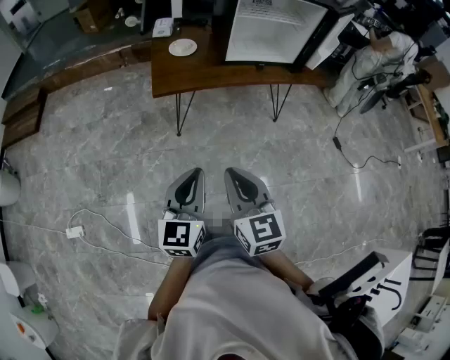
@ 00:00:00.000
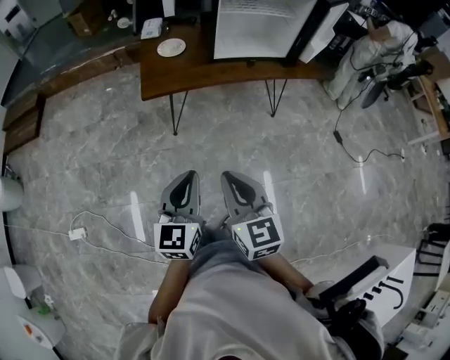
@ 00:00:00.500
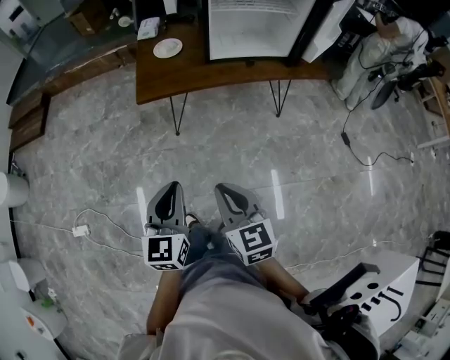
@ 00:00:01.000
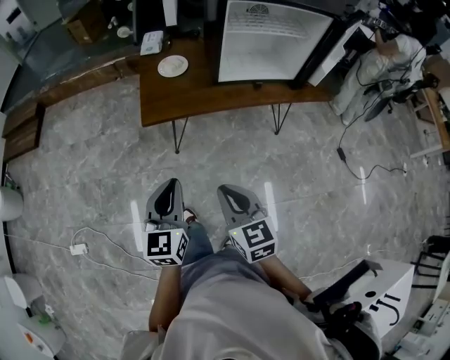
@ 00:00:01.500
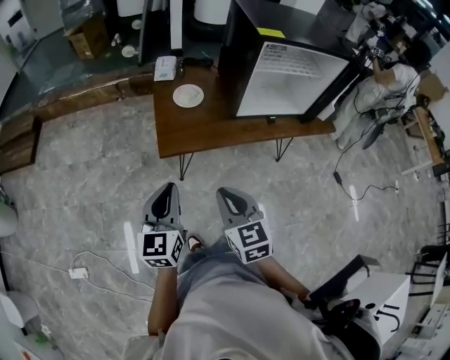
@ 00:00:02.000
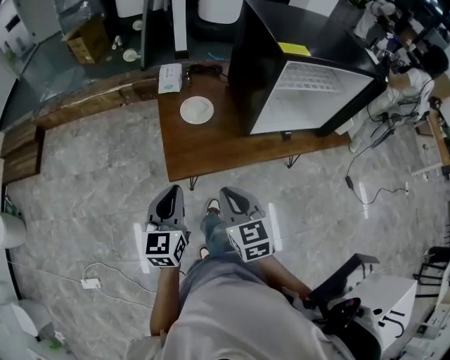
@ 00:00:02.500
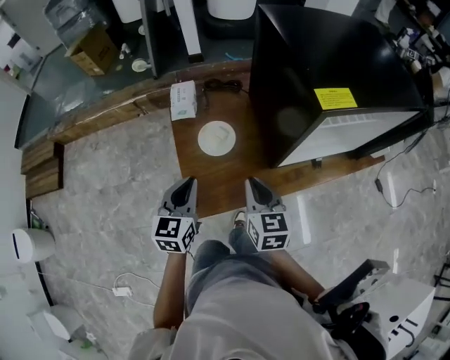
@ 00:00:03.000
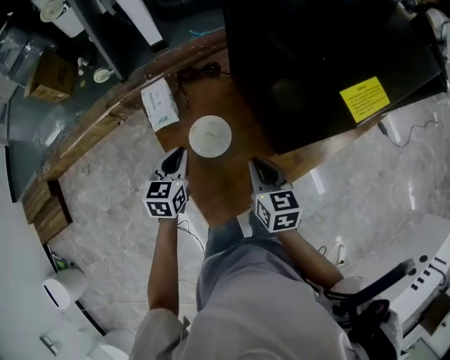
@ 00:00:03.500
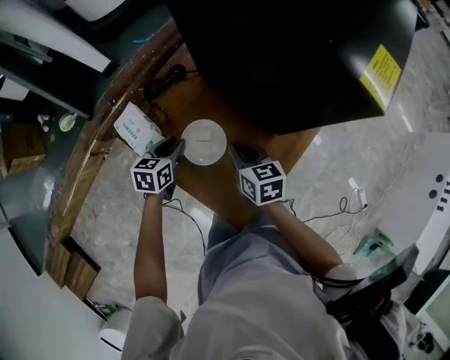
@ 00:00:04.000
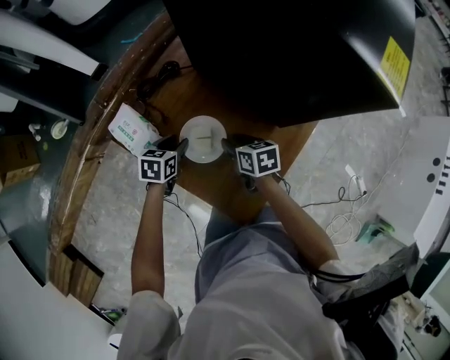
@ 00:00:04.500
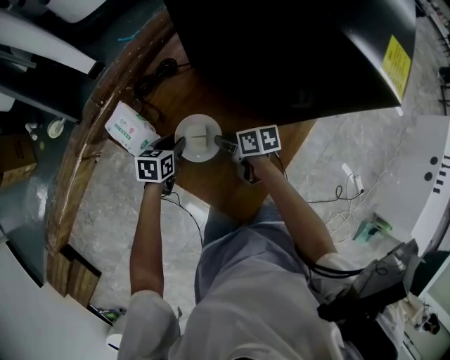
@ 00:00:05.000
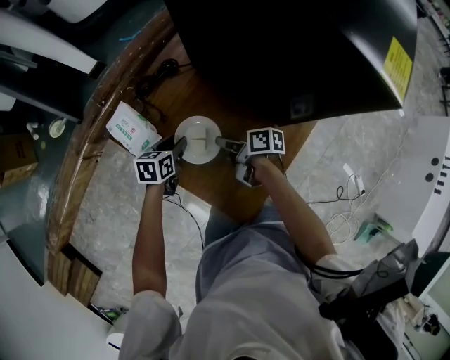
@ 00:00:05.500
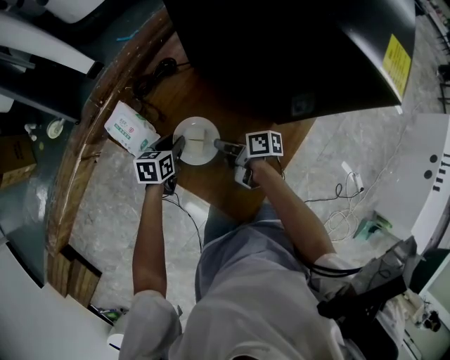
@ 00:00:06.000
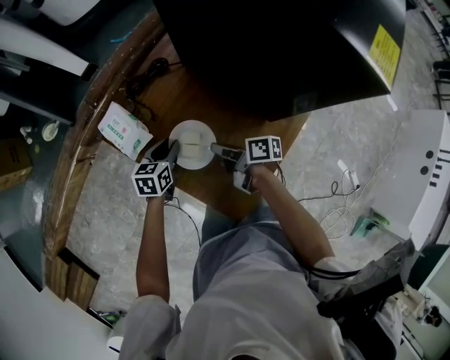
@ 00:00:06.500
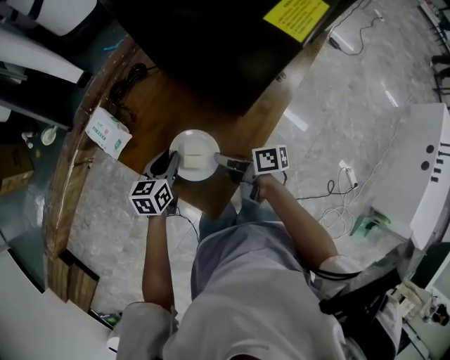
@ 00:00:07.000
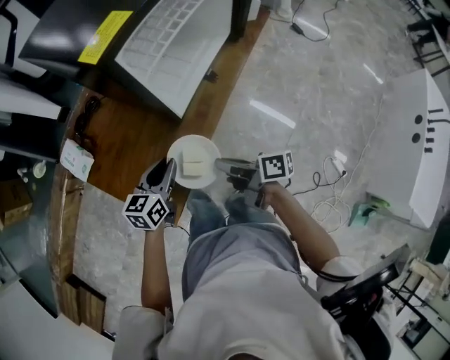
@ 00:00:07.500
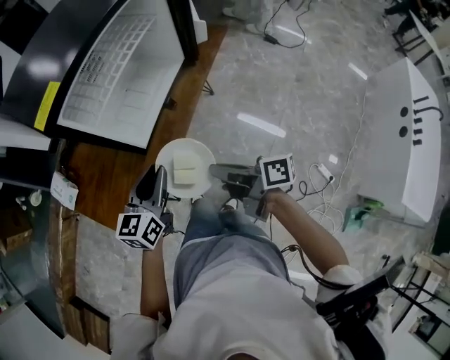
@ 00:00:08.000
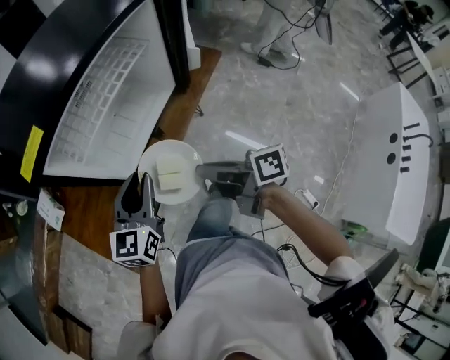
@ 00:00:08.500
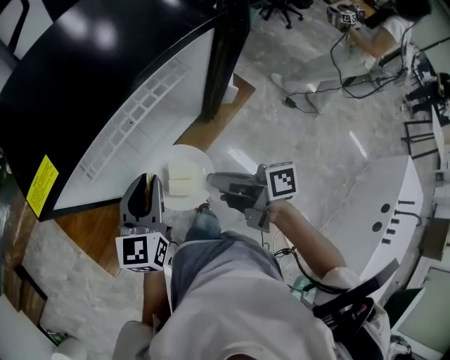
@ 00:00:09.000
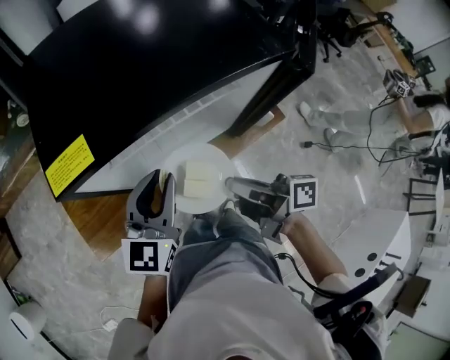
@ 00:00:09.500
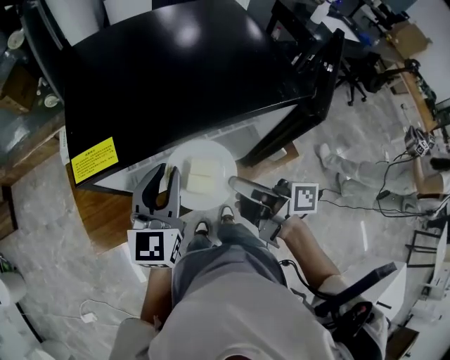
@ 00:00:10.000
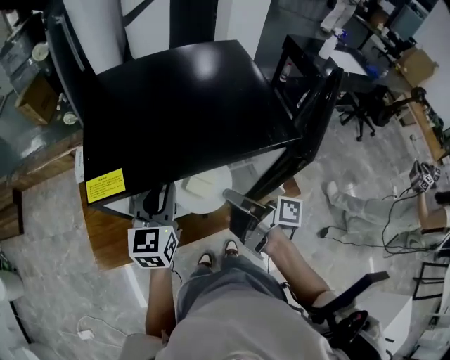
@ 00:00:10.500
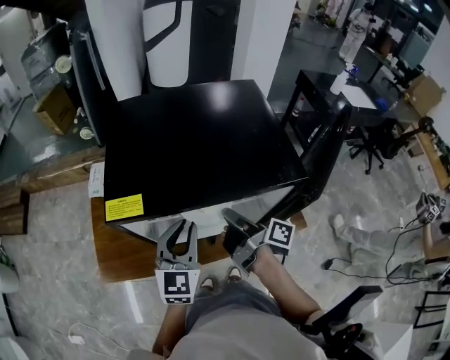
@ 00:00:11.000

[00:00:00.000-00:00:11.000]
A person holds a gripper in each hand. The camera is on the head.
00:00:00.000 to 00:00:02.000: The grippers both shift forward by roughly 35 cm.
00:00:02.000 to 00:00:03.500: The two grippers travel together, forward, approximately 70 cm. The left gripper swivels about 30 degrees. Meanwhile the right gripper swivels roughly 30 degrees.
00:00:03.500 to 00:00:05.500: The right gripper moves downward, to the left and forward, approximately 25 cm, and rolls clockwise, seen from behind, by some 60 degrees, while the left gripper shifts about 20 cm downward and forward, swivels about 40 degrees, and opens up.
00:00:05.500 to 00:00:07.500: The two grippers travel together, to the right and backward, about 50 cm. The left gripper rotates approximately 20 degrees.
00:00:07.500 to 00:00:09.000: The two grippers go roughly 40 cm to the right, forward and upward. The left gripper turns by some 30 degrees.
00:00:09.000 to 00:00:11.000: The right gripper travels forward by some 20 cm. The left gripper goes roughly 10 cm upward and forward, and swivels some 30 degrees.

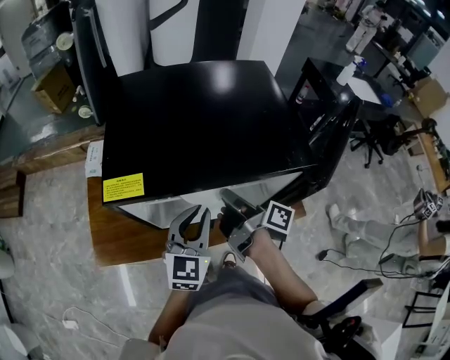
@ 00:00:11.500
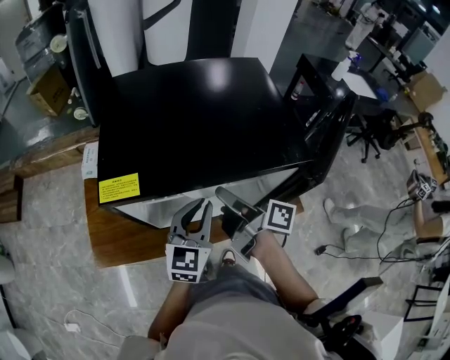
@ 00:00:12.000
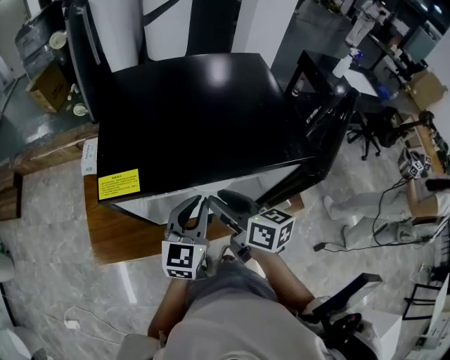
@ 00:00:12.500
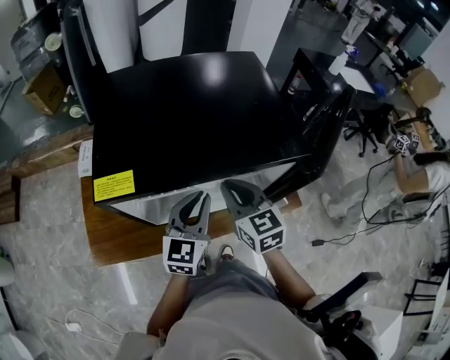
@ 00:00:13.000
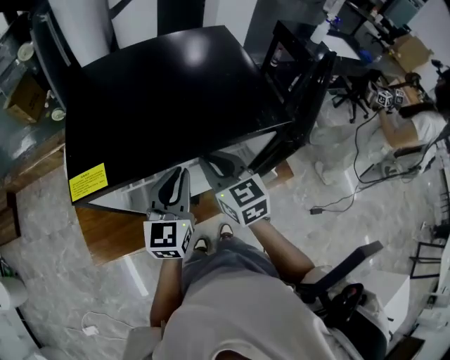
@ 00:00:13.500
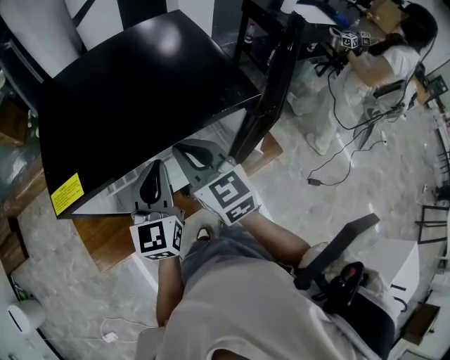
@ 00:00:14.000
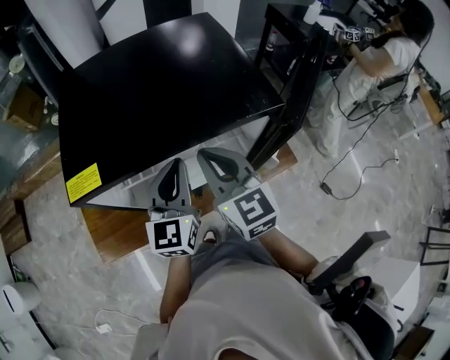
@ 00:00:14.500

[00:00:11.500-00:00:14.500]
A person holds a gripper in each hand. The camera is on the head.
00:00:11.500 to 00:00:13.000: The right gripper rolls counterclockwise, seen from behind, by roughly 80 degrees, and opens and closes again.
00:00:13.000 to 00:00:14.500: The right gripper ends up approximately 5 cm from where it was.

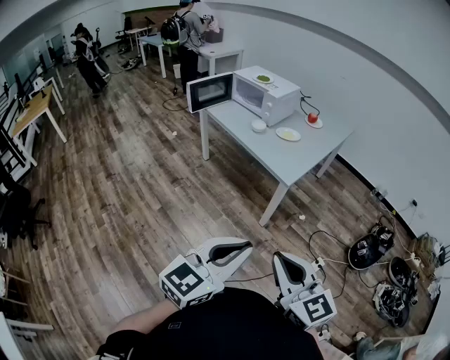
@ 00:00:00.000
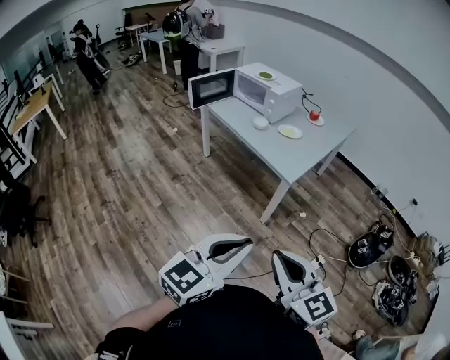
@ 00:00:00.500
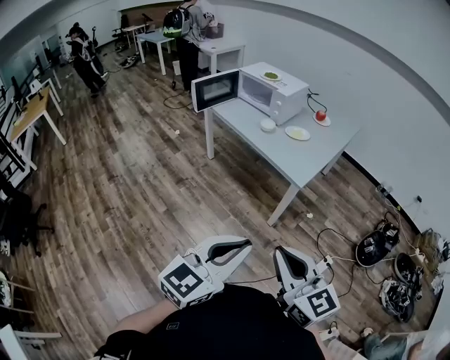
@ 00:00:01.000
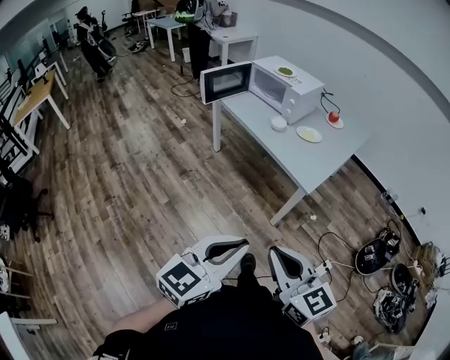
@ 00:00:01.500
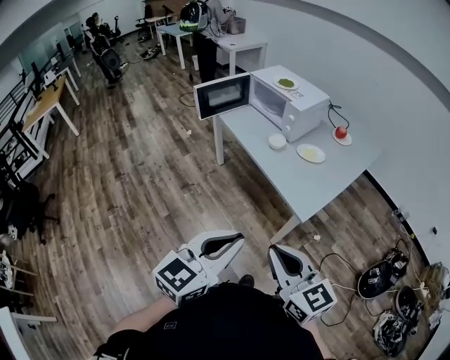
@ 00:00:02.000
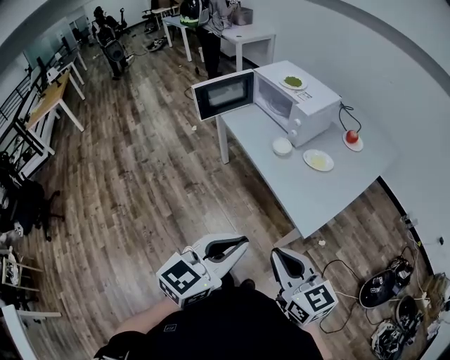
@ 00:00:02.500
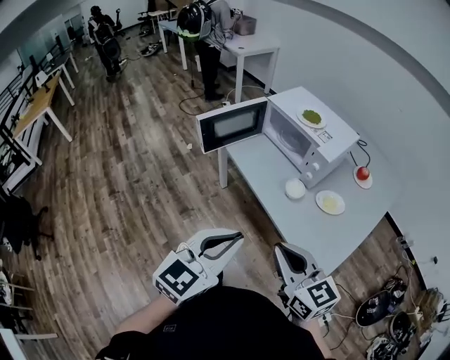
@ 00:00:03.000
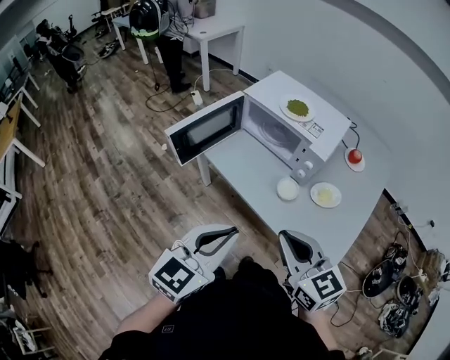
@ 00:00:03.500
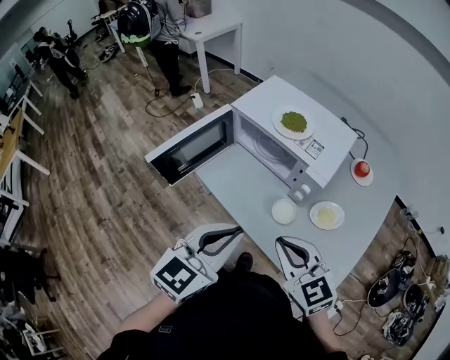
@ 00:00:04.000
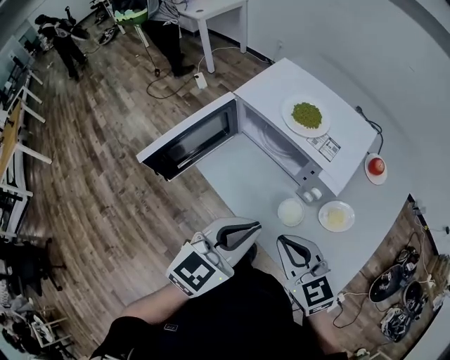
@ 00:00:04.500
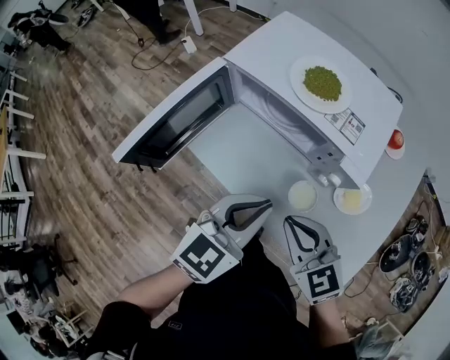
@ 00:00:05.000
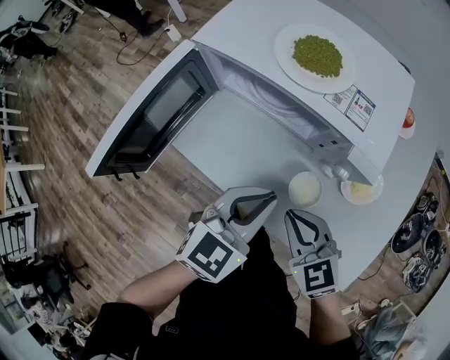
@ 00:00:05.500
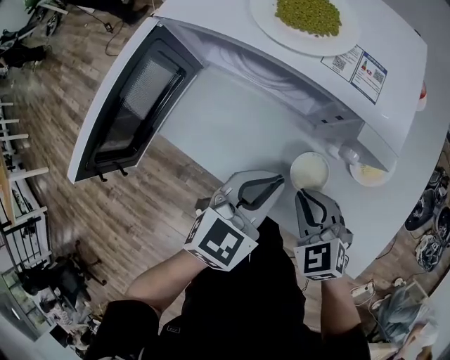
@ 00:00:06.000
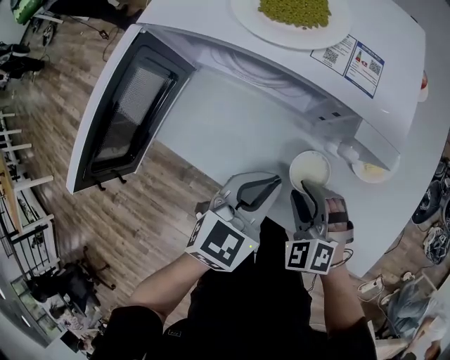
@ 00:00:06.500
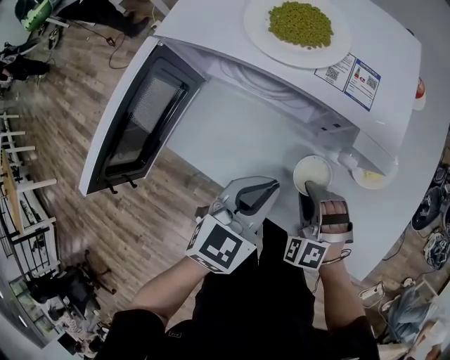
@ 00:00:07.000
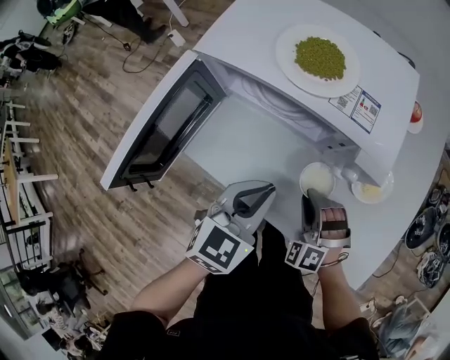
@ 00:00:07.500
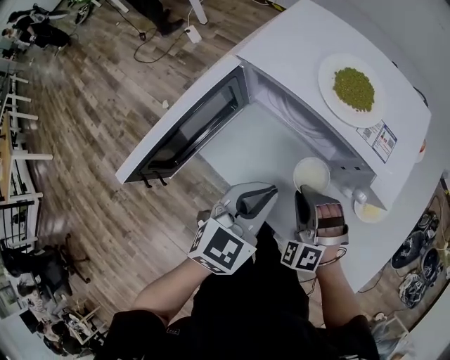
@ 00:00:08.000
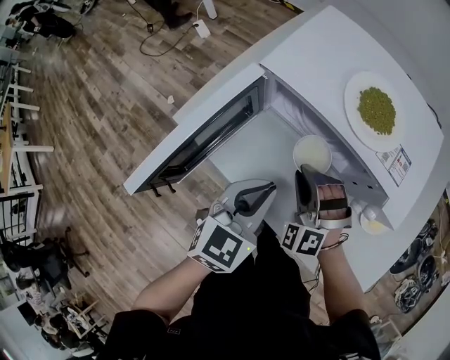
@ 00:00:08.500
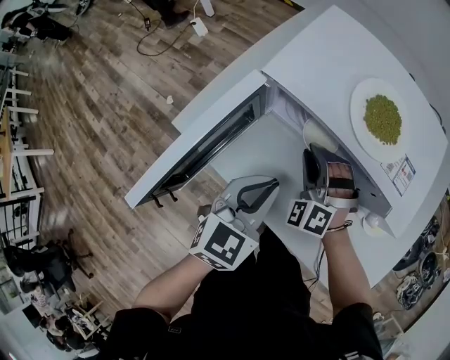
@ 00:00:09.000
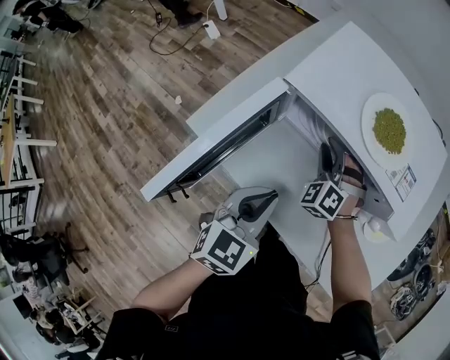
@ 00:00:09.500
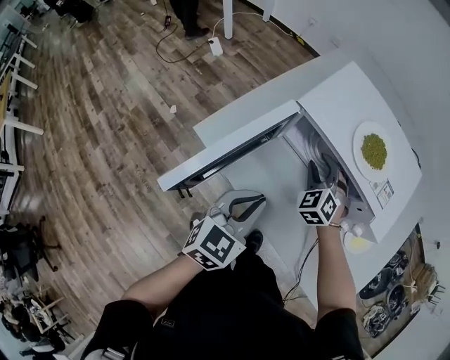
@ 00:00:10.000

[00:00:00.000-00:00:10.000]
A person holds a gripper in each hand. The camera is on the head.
00:00:00.000 to 00:00:02.000: The grippers both shift forward by approximately 25 cm.
00:00:02.000 to 00:00:04.000: The pair of grippers is taken forward, some 50 cm. The right gripper rotates some 20 degrees.
00:00:04.000 to 00:00:06.000: The two grippers go approximately 25 cm downward and forward. The left gripper rotates about 20 degrees; the right gripper swivels some 30 degrees.
00:00:06.000 to 00:00:08.000: The right gripper is displaced to the left by some 10 cm, rolls counterclockwise, seen from behind, by some 40 degrees, and opens; the left gripper travels to the left and upward by roughly 10 cm.
00:00:08.000 to 00:00:10.000: The left gripper heads to the left, covering about 10 cm, while the right gripper is displaced forward and to the left by some 20 cm.

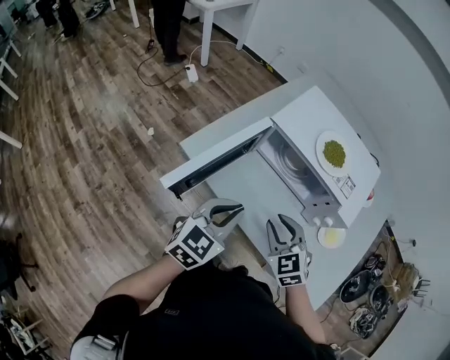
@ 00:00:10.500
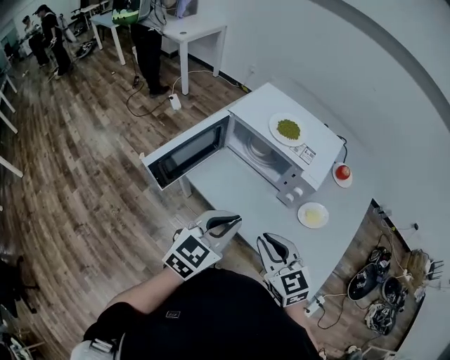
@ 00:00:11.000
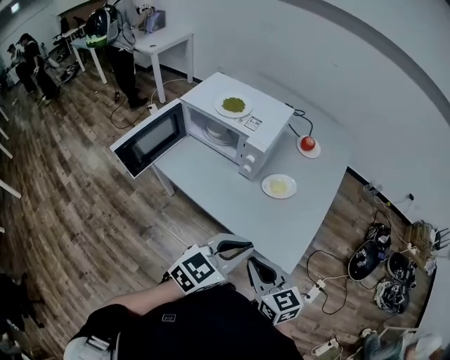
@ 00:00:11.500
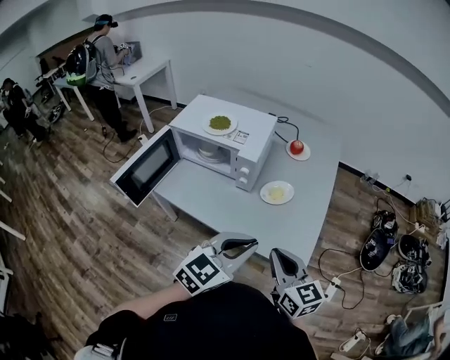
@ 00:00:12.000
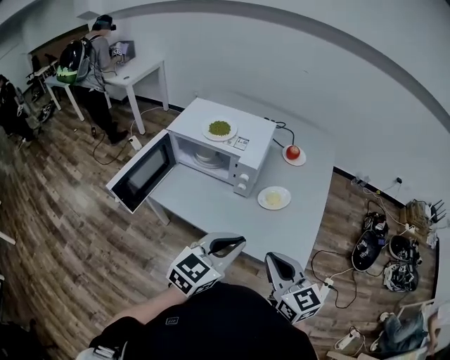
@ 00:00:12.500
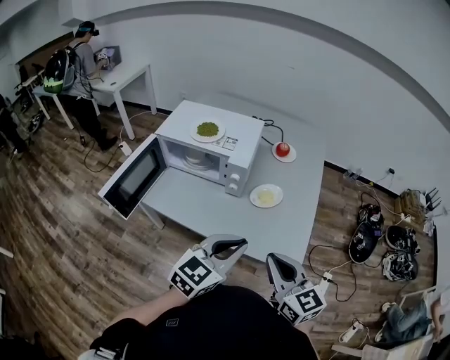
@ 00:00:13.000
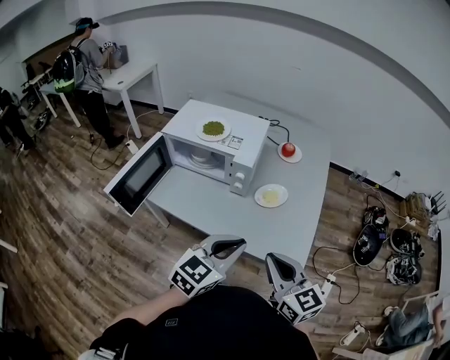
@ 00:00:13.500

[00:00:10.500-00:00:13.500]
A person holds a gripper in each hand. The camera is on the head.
00:00:10.500 to 00:00:12.000: The grippers both shift to the right and backward by roughly 40 cm. The right gripper changes its angle by roughly 50 degrees, and closes its fingers; the left gripper rotates approximately 30 degrees.
00:00:12.000 to 00:00:13.500: The left gripper changes place by some 5 cm.
